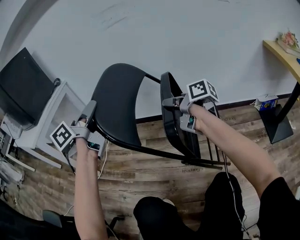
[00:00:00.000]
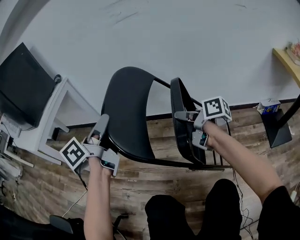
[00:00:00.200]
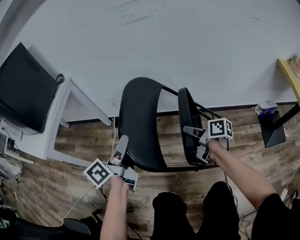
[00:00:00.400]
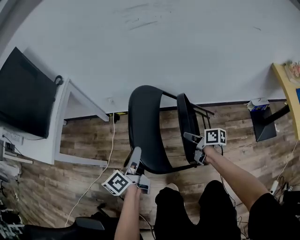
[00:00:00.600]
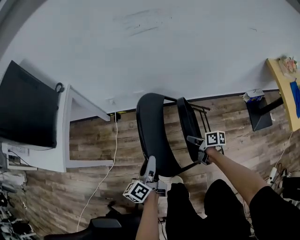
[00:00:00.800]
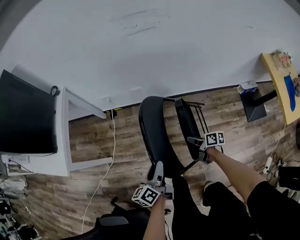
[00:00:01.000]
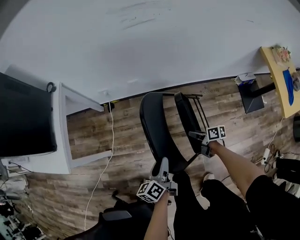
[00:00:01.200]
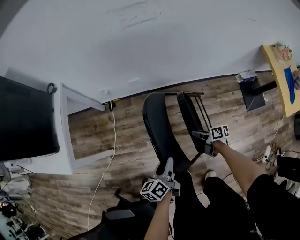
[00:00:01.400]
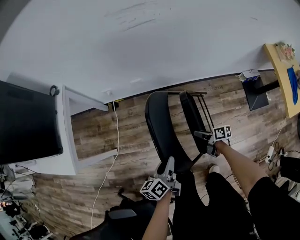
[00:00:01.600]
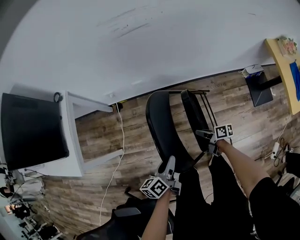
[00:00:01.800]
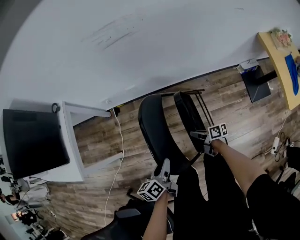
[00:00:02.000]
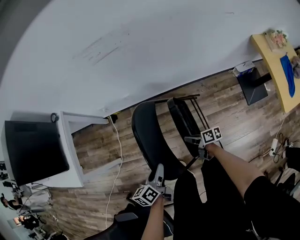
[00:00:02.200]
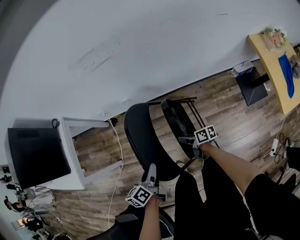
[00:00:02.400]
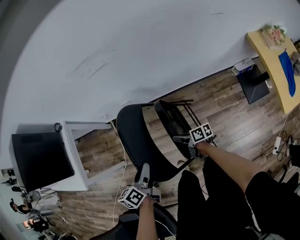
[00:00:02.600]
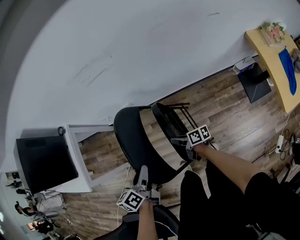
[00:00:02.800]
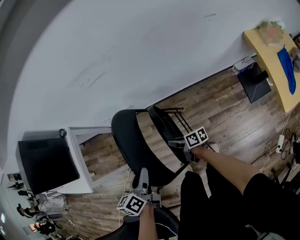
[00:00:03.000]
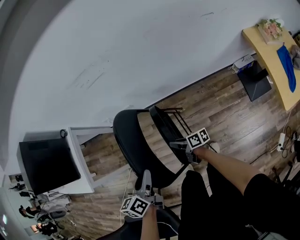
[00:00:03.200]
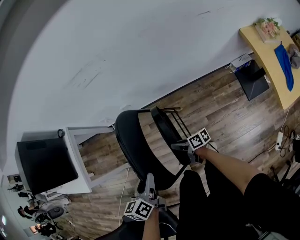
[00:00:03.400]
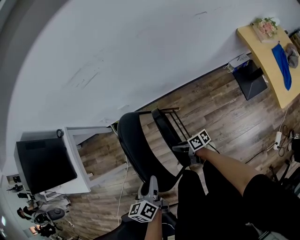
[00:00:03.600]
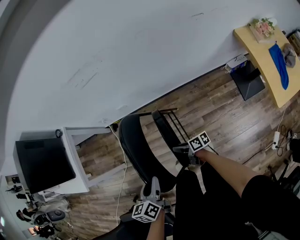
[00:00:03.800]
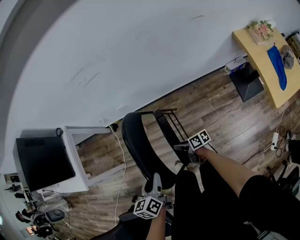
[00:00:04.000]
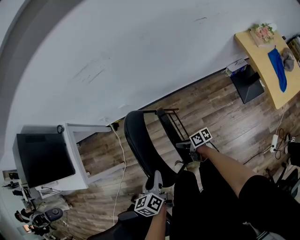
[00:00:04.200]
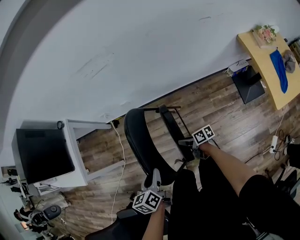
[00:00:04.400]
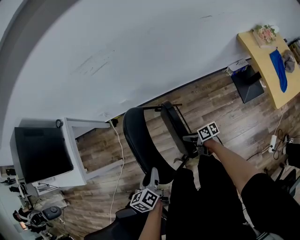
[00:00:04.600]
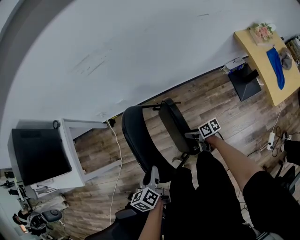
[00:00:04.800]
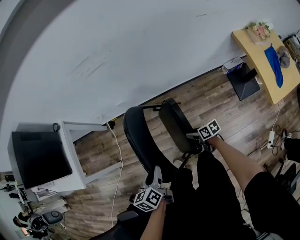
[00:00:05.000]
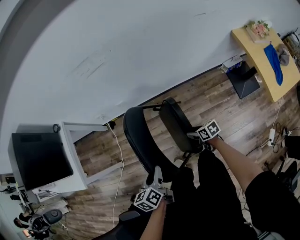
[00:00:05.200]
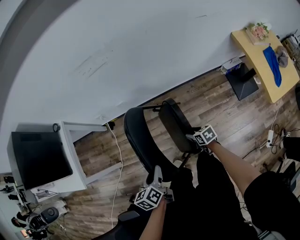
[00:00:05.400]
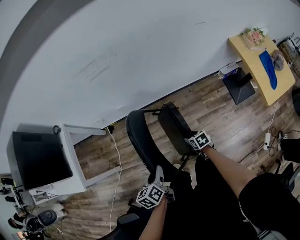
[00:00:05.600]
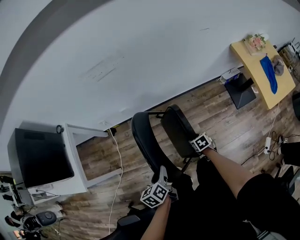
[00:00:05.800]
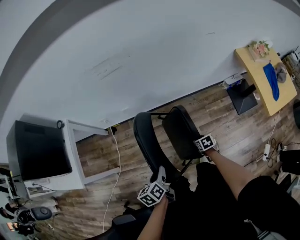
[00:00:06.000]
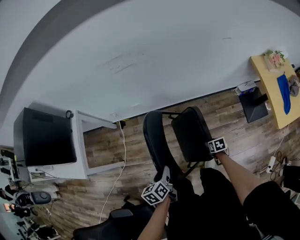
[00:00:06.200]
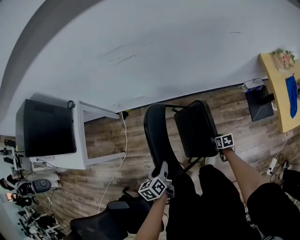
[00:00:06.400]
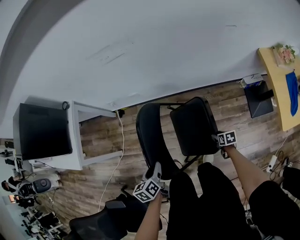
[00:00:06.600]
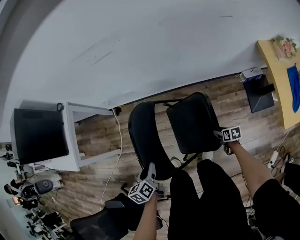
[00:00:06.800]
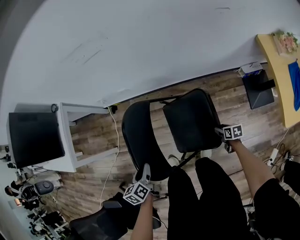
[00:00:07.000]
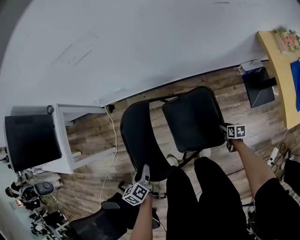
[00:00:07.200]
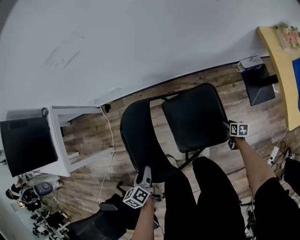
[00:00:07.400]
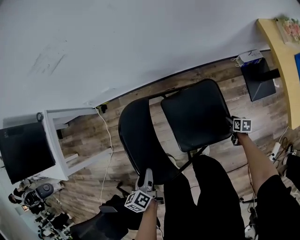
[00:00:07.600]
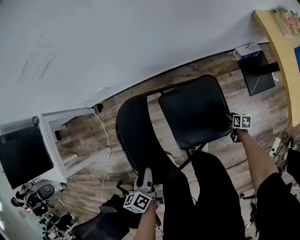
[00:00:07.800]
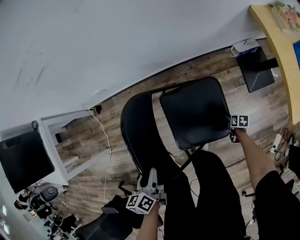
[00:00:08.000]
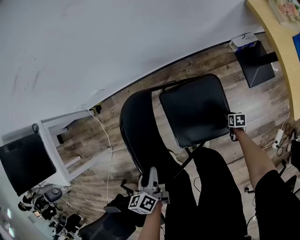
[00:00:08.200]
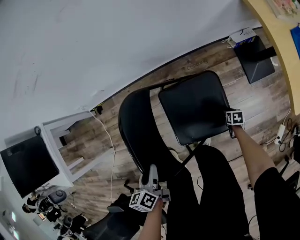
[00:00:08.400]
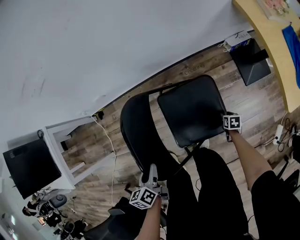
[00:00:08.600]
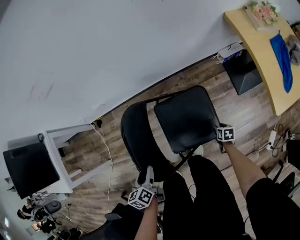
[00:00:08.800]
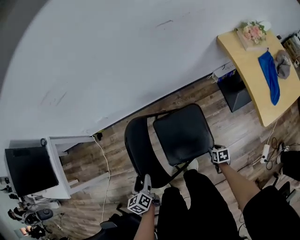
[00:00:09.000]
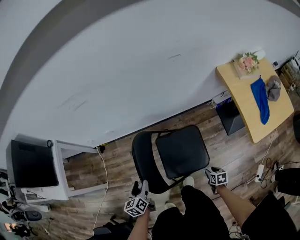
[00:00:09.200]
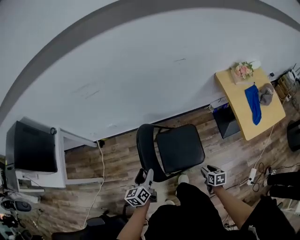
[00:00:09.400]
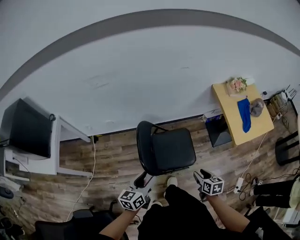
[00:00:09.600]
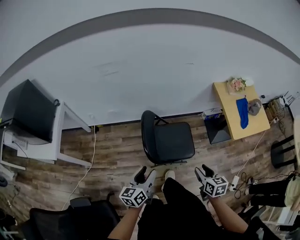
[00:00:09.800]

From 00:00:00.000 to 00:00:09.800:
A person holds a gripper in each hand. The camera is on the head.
From 00:00:00.000 to 00:00:01.400: The right gripper shifts some 10 cm to the left and backward, and rotates roughly 20 degrees, while the left gripper is displaced backward by approximately 10 cm, and turns by approximately 30 degrees.
From 00:00:01.400 to 00:00:02.800: The right gripper travels upward, forward and to the right by roughly 15 cm; the left gripper travels upward, to the right and forward by roughly 20 cm.
From 00:00:02.800 to 00:00:04.200: The grippers both shift backward by roughly 10 cm.
From 00:00:04.200 to 00:00:05.600: The right gripper moves to the right, some 5 cm, tips its fingers downward by roughly 40 degrees, and opens up.
From 00:00:05.600 to 00:00:07.000: The right gripper heads to the right and downward, covering some 25 cm. The left gripper is displaced downward by approximately 10 cm.
From 00:00:07.000 to 00:00:08.400: The left gripper shifts by approximately 15 cm; the right gripper heads downward, covering approximately 20 cm, and turns by approximately 20 degrees.
From 00:00:08.400 to 00:00:09.800: The left gripper travels upward by roughly 30 cm, rotates roughly 30 degrees, and opens its fingers; the right gripper shifts some 60 cm upward, and tips its fingers upward by approximately 40 degrees.

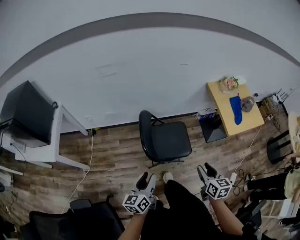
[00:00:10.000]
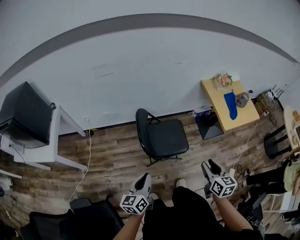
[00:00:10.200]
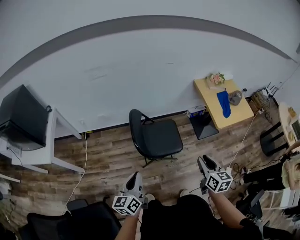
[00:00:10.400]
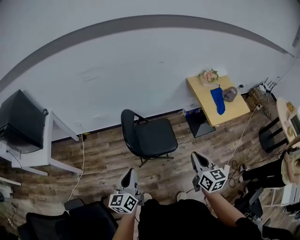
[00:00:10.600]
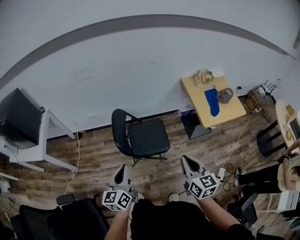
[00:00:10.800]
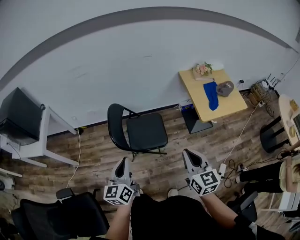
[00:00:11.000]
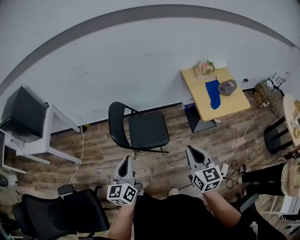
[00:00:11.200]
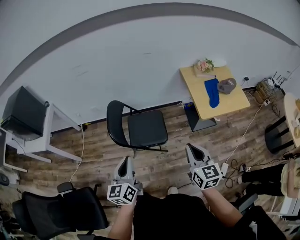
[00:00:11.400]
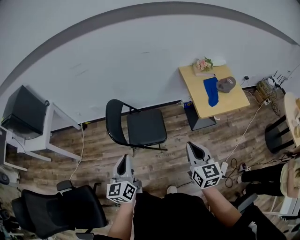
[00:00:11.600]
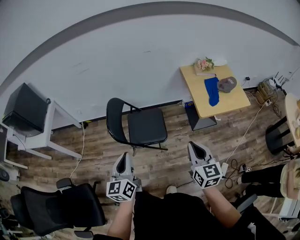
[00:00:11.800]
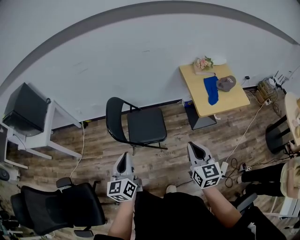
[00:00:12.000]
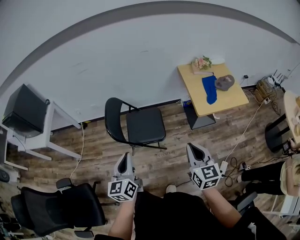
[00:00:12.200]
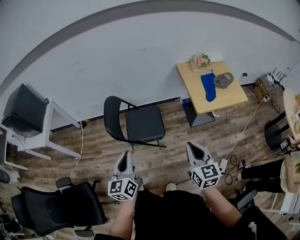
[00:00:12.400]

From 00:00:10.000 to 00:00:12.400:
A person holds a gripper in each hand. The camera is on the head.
From 00:00:10.000 to 00:00:11.200: Both grippers move to the right and upward, approximately 20 cm. The right gripper changes its angle by roughly 20 degrees, and closes up, while the left gripper closes.
From 00:00:11.200 to 00:00:12.400: Both grippers move to the right, about 5 cm.

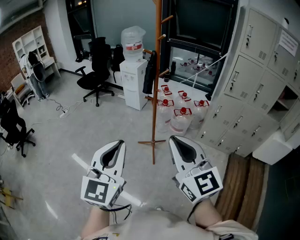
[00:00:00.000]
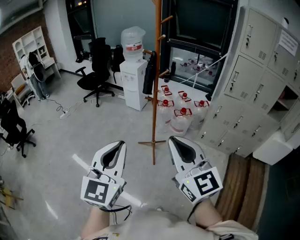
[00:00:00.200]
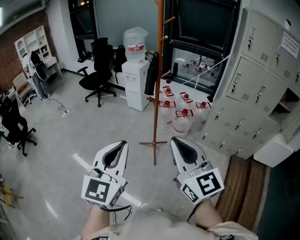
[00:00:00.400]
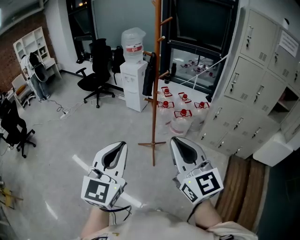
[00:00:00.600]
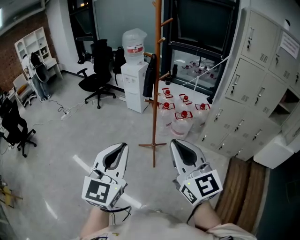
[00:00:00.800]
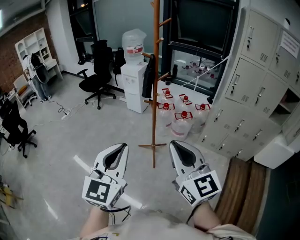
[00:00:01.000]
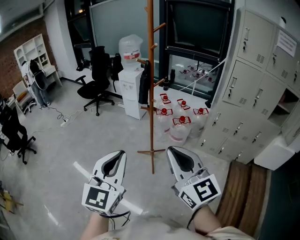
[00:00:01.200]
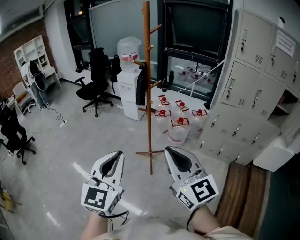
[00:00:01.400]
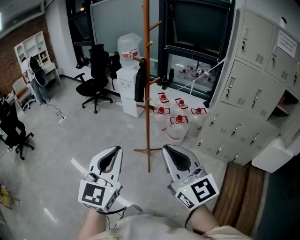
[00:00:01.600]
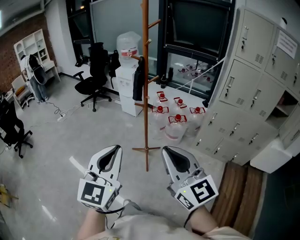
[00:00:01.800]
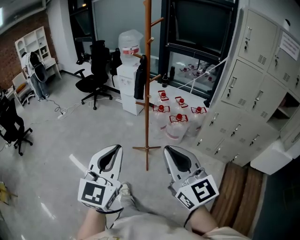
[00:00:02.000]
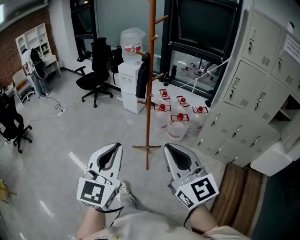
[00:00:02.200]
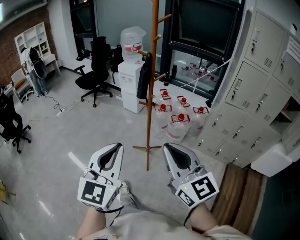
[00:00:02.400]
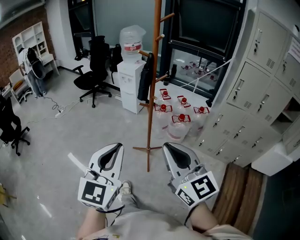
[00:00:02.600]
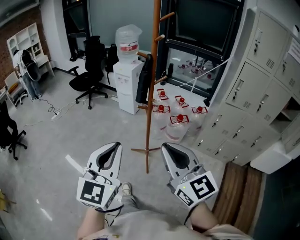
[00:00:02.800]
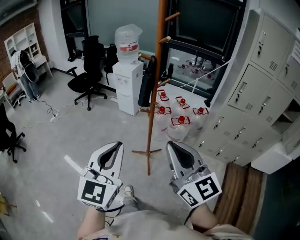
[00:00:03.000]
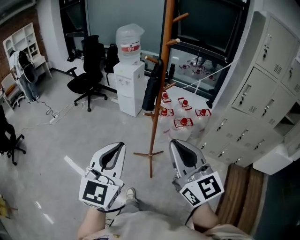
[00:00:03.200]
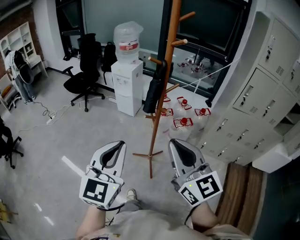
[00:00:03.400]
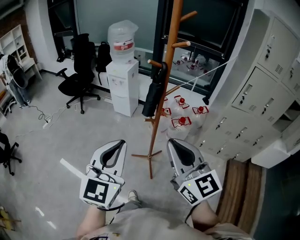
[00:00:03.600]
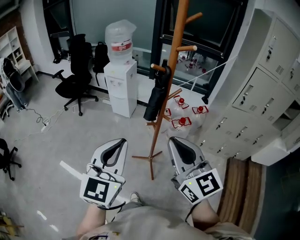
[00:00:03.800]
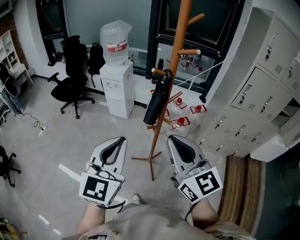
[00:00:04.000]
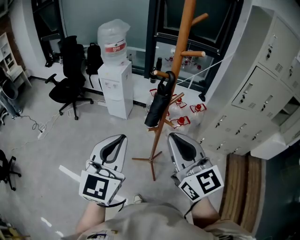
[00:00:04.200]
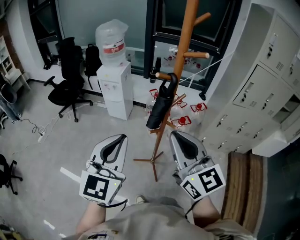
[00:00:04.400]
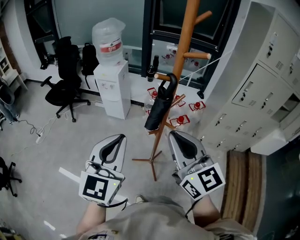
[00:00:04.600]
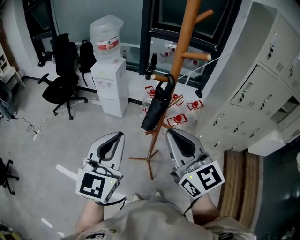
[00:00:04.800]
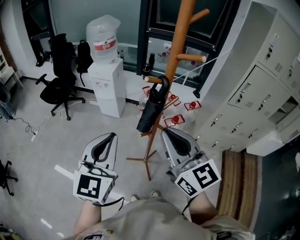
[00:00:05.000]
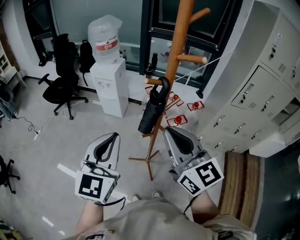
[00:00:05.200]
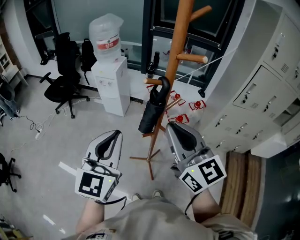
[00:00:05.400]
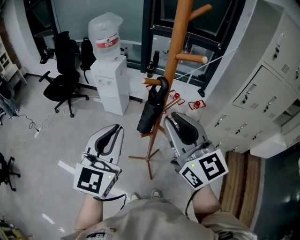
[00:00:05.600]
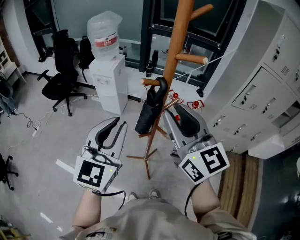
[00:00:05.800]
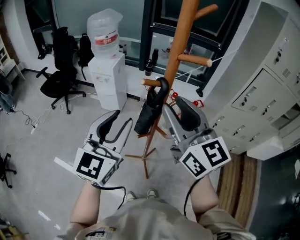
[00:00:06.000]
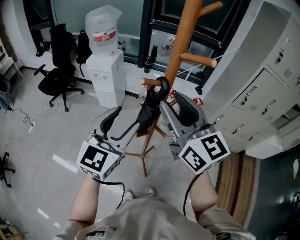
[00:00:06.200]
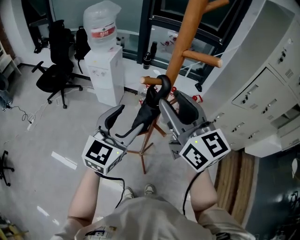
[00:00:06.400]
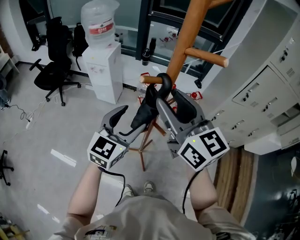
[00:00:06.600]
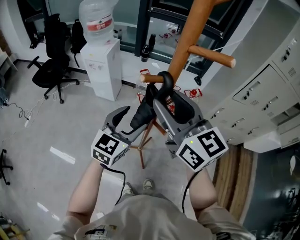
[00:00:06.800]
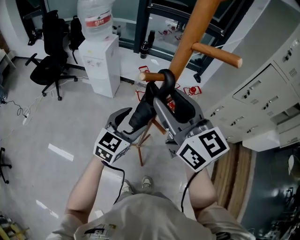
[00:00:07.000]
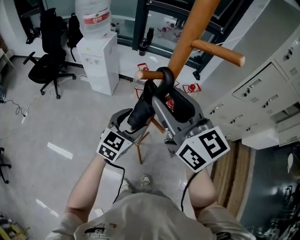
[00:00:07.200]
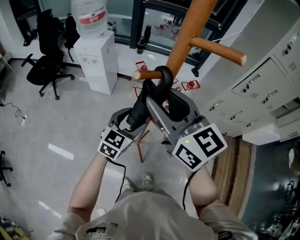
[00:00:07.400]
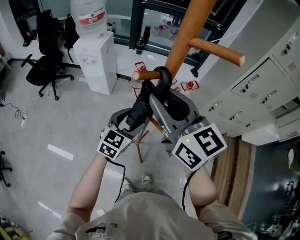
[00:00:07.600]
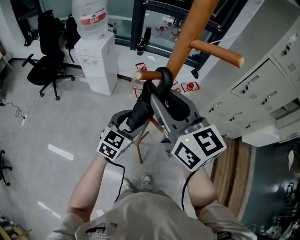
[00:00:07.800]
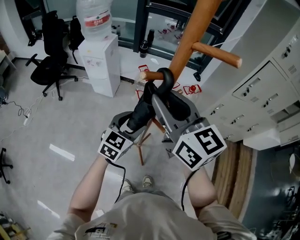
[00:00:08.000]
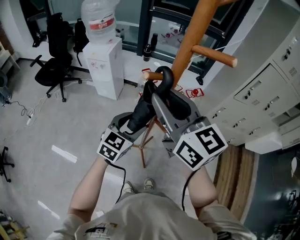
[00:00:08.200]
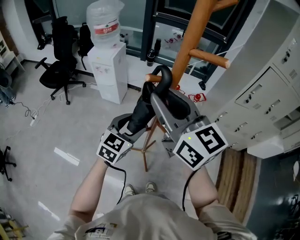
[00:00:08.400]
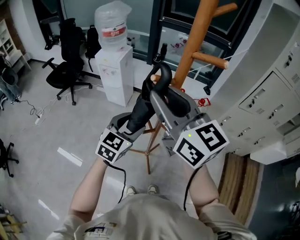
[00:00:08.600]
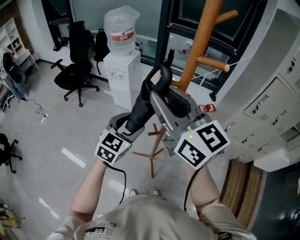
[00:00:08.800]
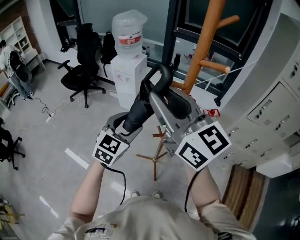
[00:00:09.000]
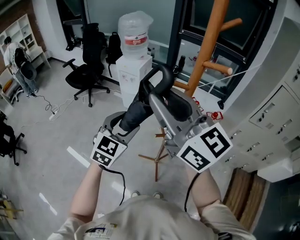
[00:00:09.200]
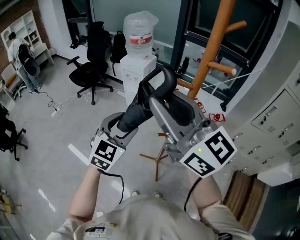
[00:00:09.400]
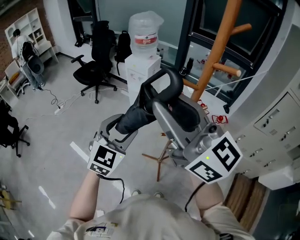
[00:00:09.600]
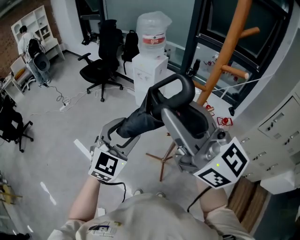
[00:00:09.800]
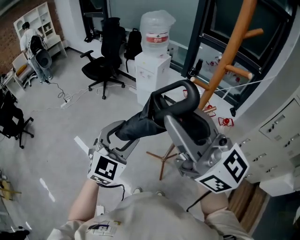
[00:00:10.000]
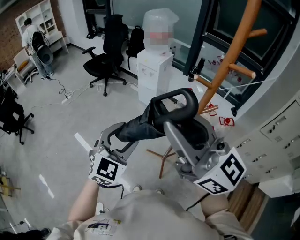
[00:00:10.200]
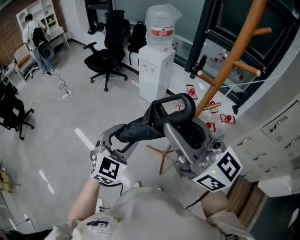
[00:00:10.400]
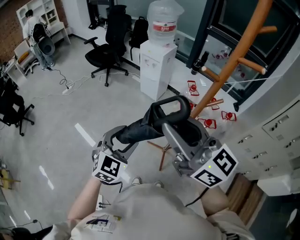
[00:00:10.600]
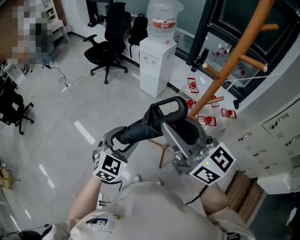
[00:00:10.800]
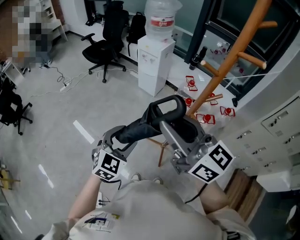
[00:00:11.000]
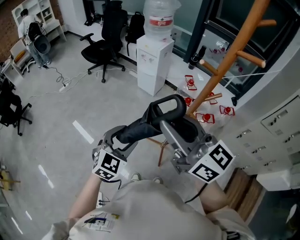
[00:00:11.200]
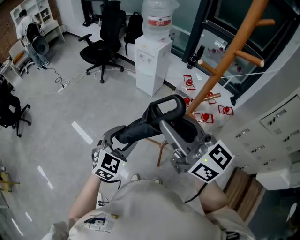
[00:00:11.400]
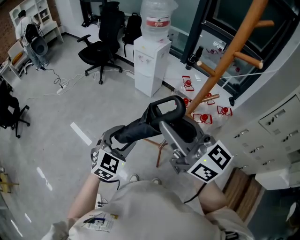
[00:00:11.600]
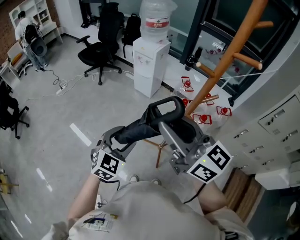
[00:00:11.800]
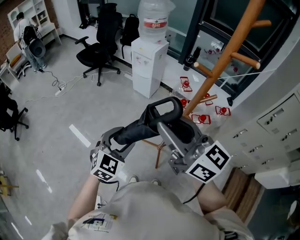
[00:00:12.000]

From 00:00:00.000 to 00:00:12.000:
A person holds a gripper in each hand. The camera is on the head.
From 00:00:00.000 to 00:00:01.600: The grippers both shift to the right by approximately 5 cm.
From 00:00:01.600 to 00:00:03.000: The grippers both shift forward by about 15 cm.
From 00:00:03.000 to 00:00:04.400: The left gripper moves forward, roughly 25 cm. Meanwhile the right gripper shifts about 25 cm forward and to the left.
From 00:00:04.400 to 00:00:06.000: The right gripper goes some 15 cm forward, and opens up. The left gripper goes some 15 cm forward and to the right, and opens.
From 00:00:06.000 to 00:00:07.600: The right gripper moves downward and forward, approximately 10 cm. The left gripper shifts roughly 25 cm downward and forward, turns by approximately 20 degrees, and opens up.
From 00:00:07.600 to 00:00:09.000: The left gripper moves upward, to the left and backward, about 15 cm. Meanwhile the right gripper moves upward, backward and to the left, approximately 15 cm, and rotates roughly 20 degrees.
From 00:00:09.000 to 00:00:10.400: The left gripper heads to the left and backward, covering some 15 cm; the right gripper goes approximately 10 cm backward and to the left.
From 00:00:10.400 to 00:00:12.000: Both grippers move downward, roughly 5 cm.
